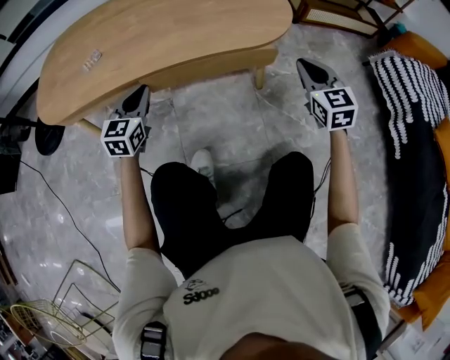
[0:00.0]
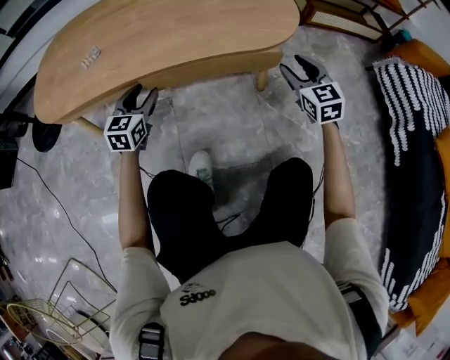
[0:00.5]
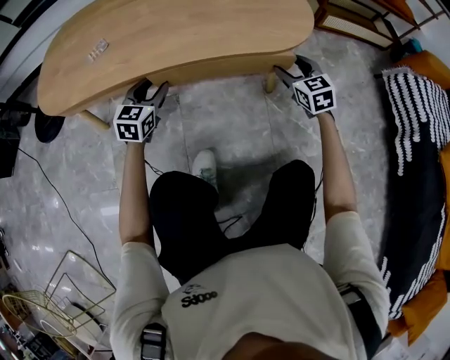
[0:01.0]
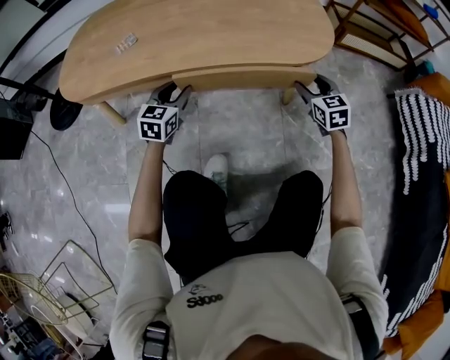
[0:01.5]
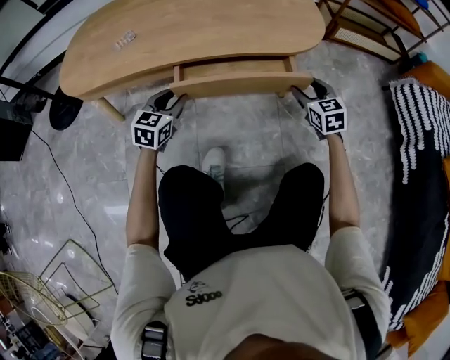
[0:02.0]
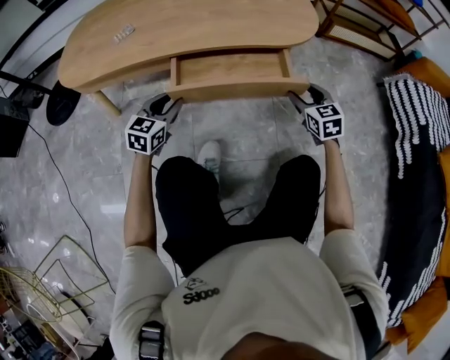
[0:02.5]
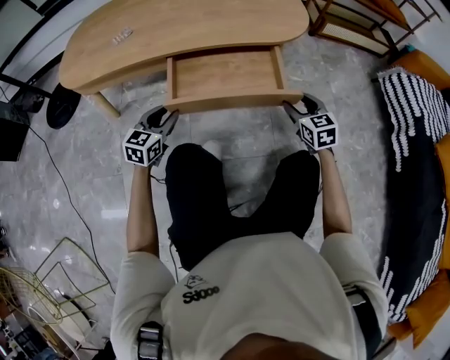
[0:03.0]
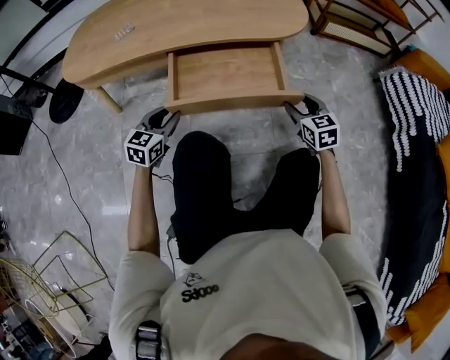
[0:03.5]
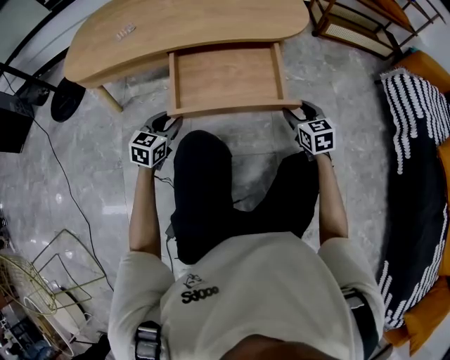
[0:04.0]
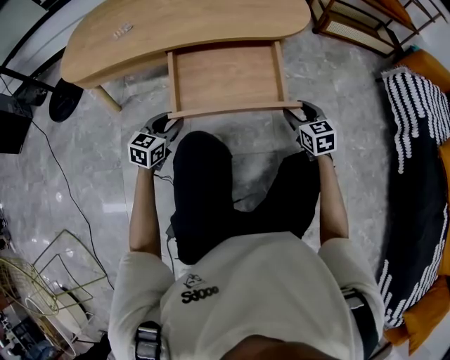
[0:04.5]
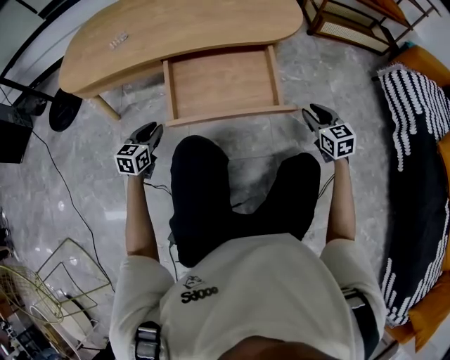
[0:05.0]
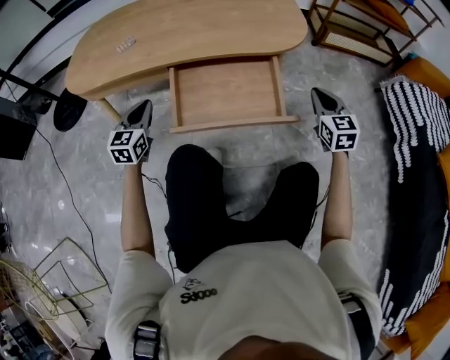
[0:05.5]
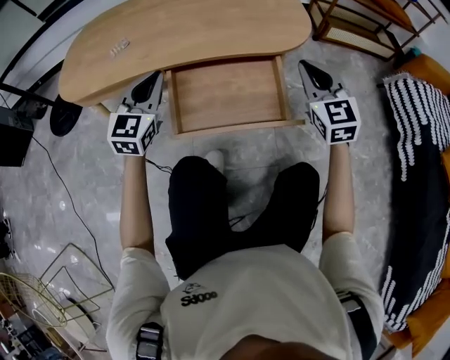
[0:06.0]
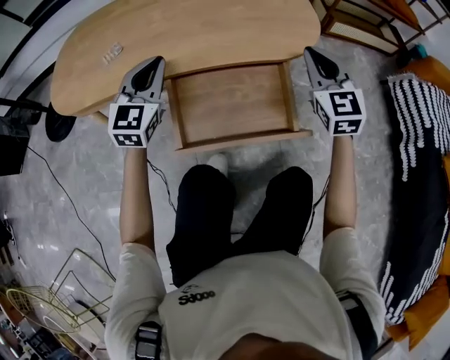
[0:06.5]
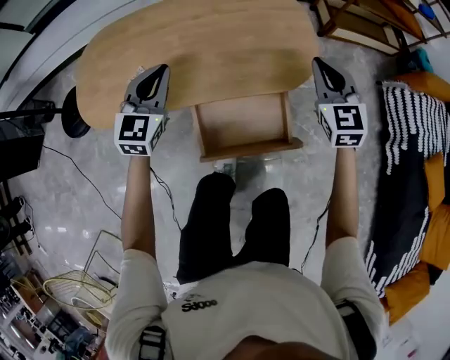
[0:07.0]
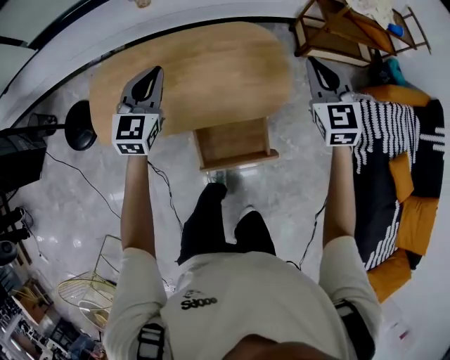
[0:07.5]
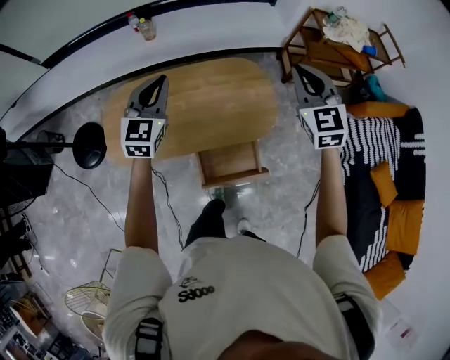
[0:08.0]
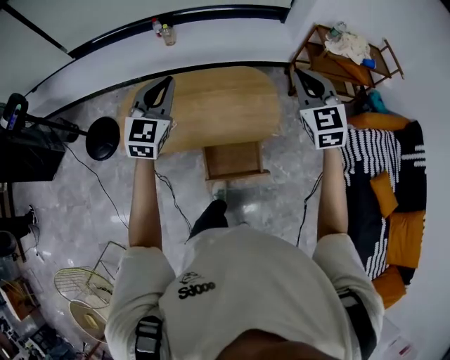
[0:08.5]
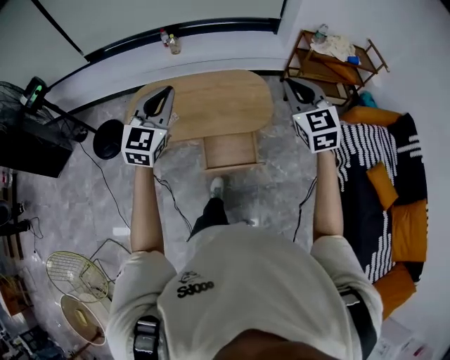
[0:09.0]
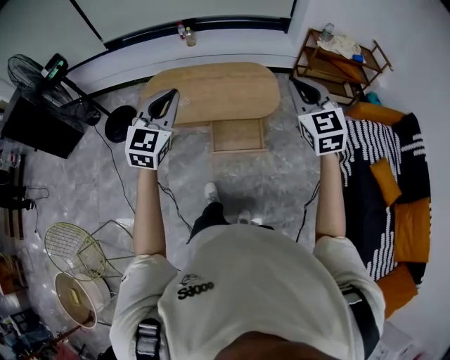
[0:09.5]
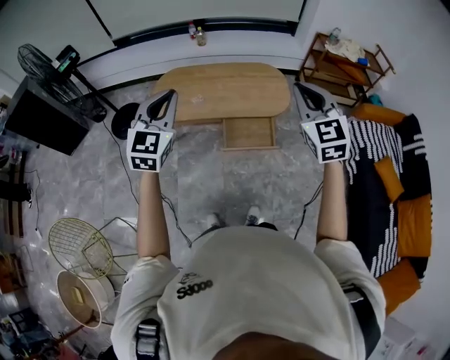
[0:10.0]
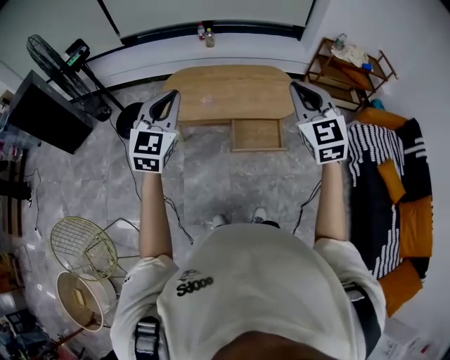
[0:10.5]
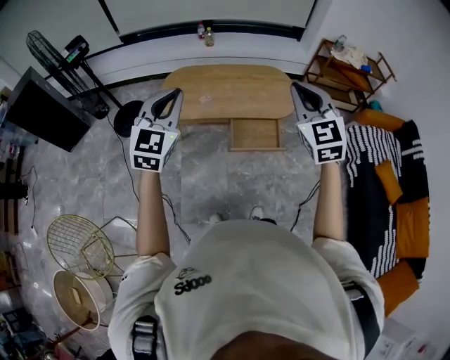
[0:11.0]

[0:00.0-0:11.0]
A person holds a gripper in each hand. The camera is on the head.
0:00.0 to 0:02.0: The left gripper goes some 5 cm downward, and opens up. The right gripper heads downward, covering about 10 cm, and opens.
0:02.0 to 0:03.5: Both grippers move backward, roughly 10 cm.
0:03.5 to 0:05.5: The right gripper goes some 10 cm upward, and closes up; the left gripper is displaced to the left, upward and forward by some 10 cm, and closes up.
0:05.5 to 0:07.5: Both grippers travel together upward and forward, some 50 cm.
0:07.5 to 0:09.0: The grippers both shift upward and backward by some 40 cm.
0:09.0 to 0:11.0: The two grippers go approximately 30 cm backward and to the left.

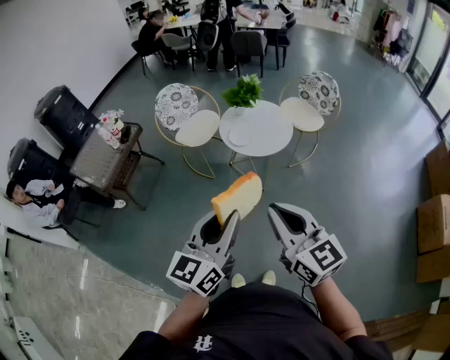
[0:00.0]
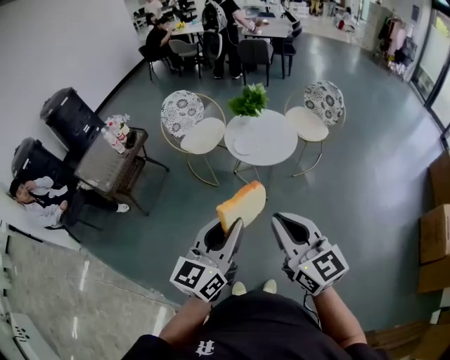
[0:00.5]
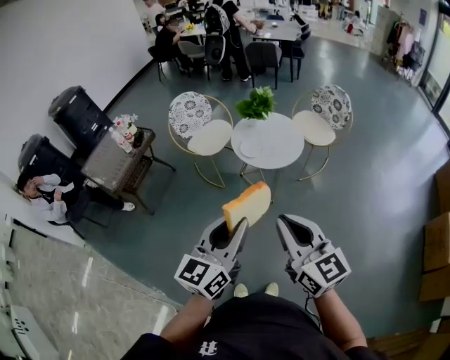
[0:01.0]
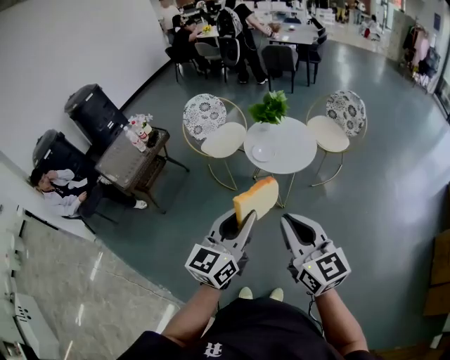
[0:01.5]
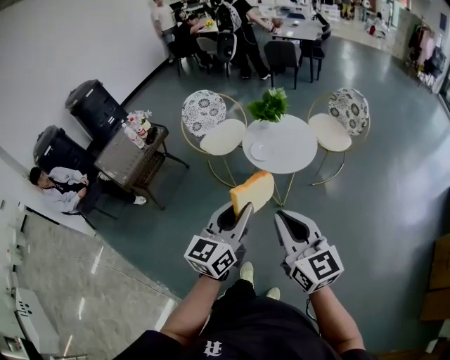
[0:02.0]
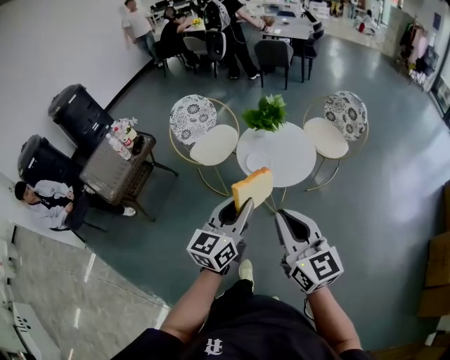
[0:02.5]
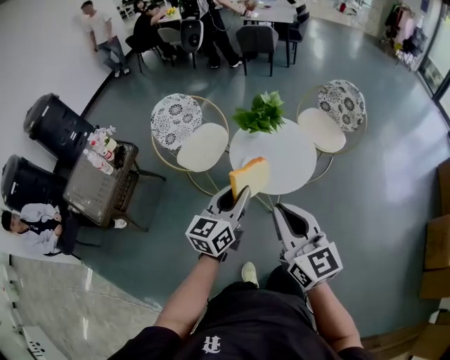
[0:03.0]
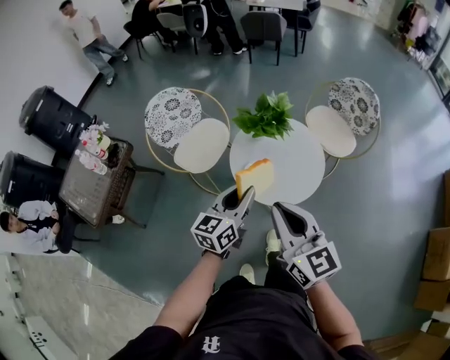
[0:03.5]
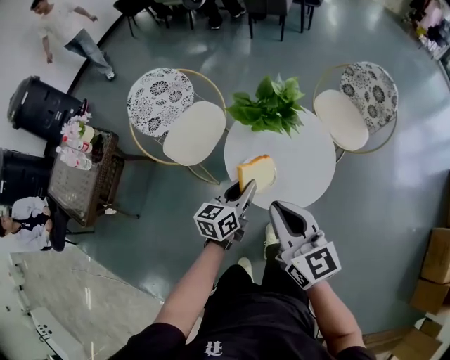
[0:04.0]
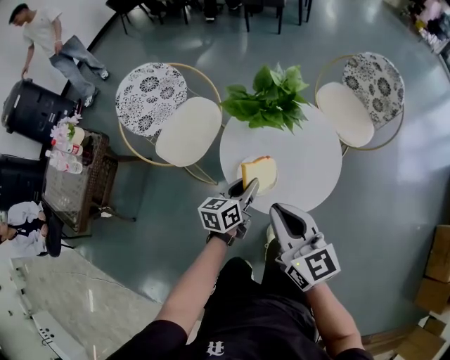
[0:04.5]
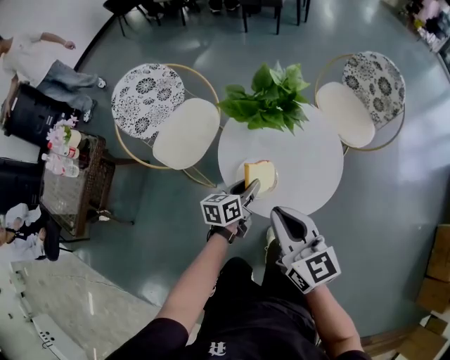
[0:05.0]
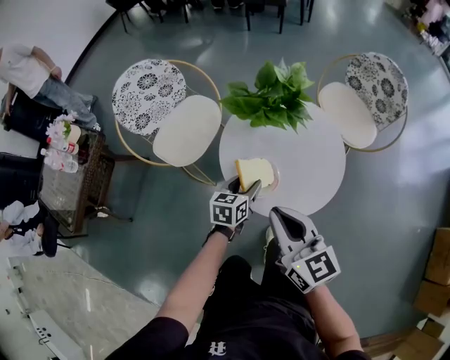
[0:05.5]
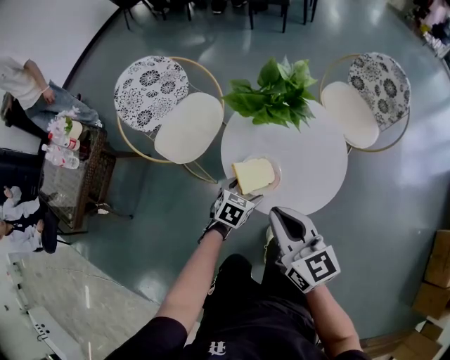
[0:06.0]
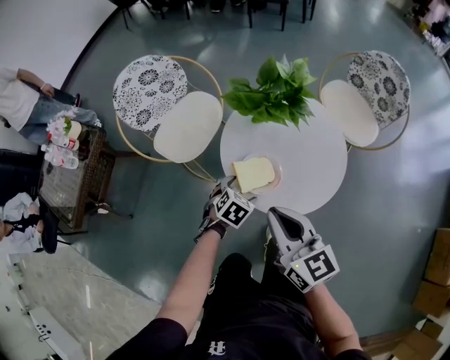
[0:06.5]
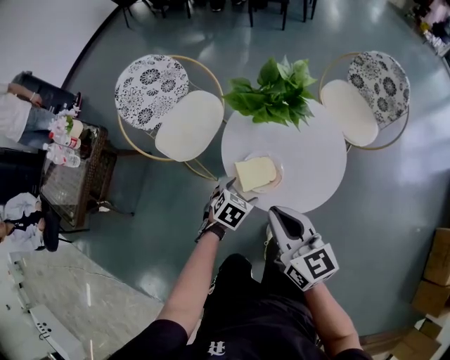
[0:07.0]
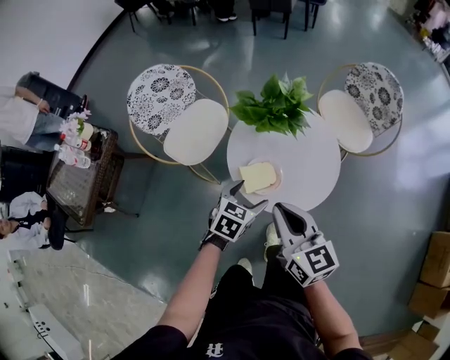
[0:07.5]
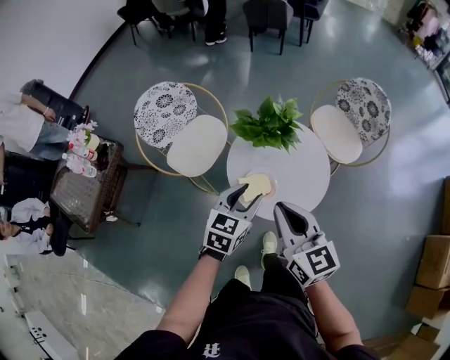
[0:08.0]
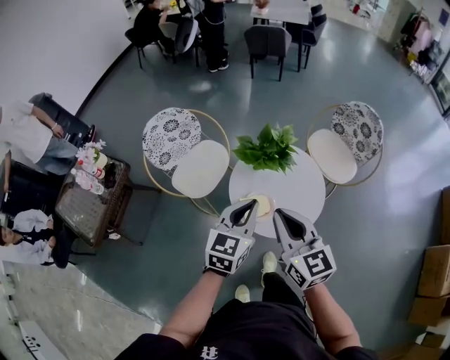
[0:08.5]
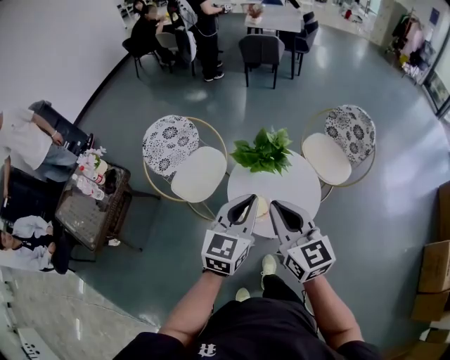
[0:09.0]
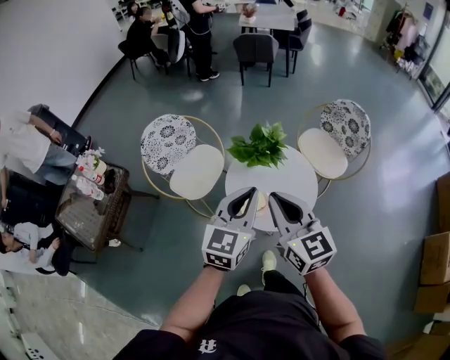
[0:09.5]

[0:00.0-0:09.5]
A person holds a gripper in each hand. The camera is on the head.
0:00.0 to 0:02.0: The right gripper heads forward, covering approximately 5 cm. The left gripper is displaced forward by about 10 cm.
0:02.0 to 0:04.0: The pair of grippers is taken forward, some 50 cm. The left gripper travels downward by some 30 cm, and changes its angle by about 30 degrees. The right gripper moves downward, roughly 20 cm.
0:04.0 to 0:05.5: The right gripper heads downward, covering approximately 10 cm, while the left gripper shifts some 15 cm downward.
0:05.5 to 0:07.5: The left gripper heads upward and backward, covering about 10 cm, swivels some 20 degrees, and opens its fingers, while the right gripper travels upward by some 5 cm.
0:07.5 to 0:09.5: The left gripper travels upward by about 30 cm, angles its fingers upward, by approximately 40 degrees, and closes its fingers; the right gripper heads upward, covering some 20 cm.

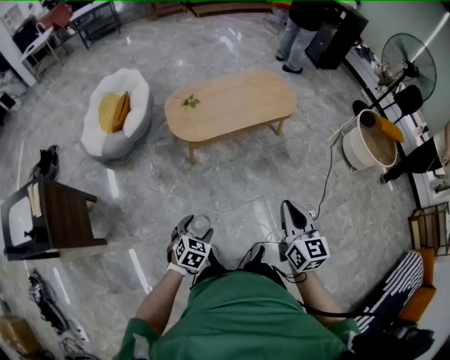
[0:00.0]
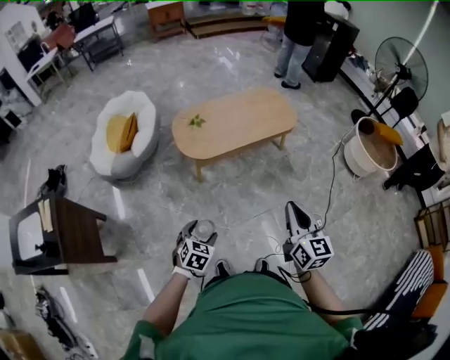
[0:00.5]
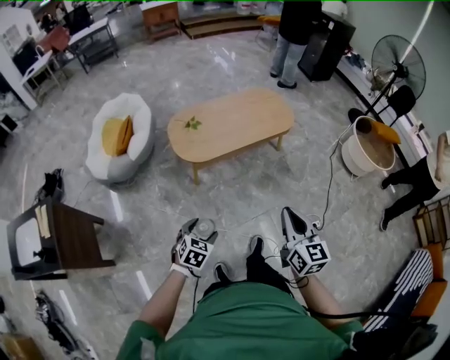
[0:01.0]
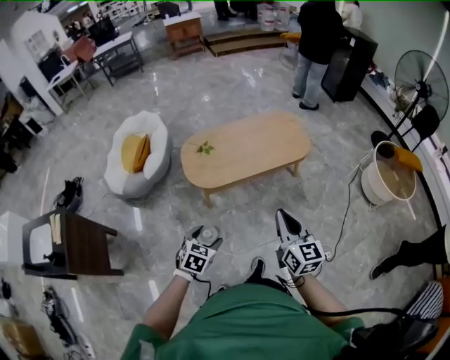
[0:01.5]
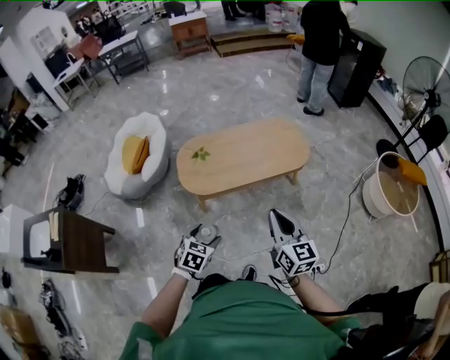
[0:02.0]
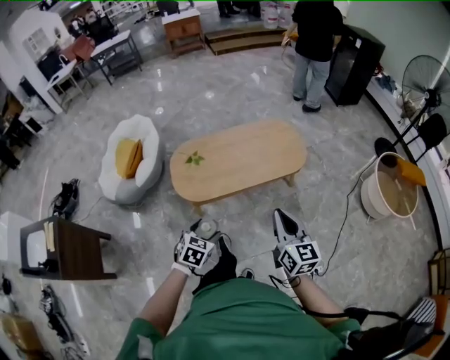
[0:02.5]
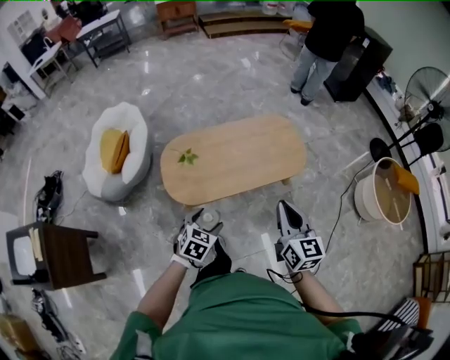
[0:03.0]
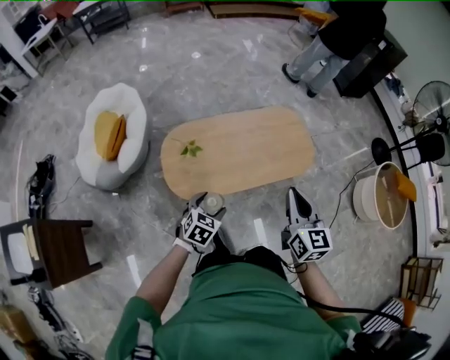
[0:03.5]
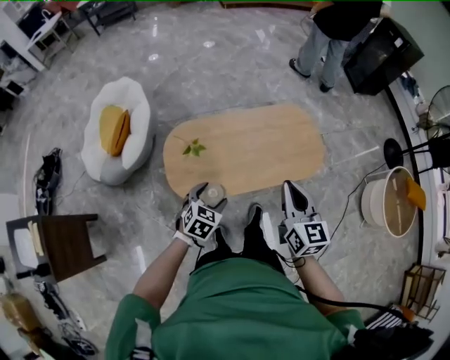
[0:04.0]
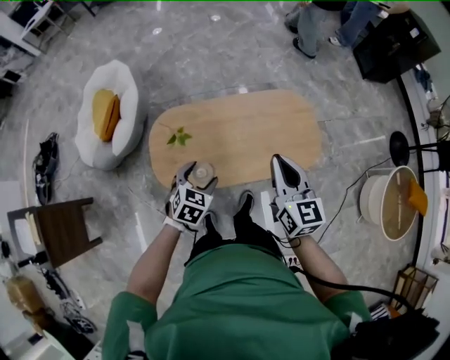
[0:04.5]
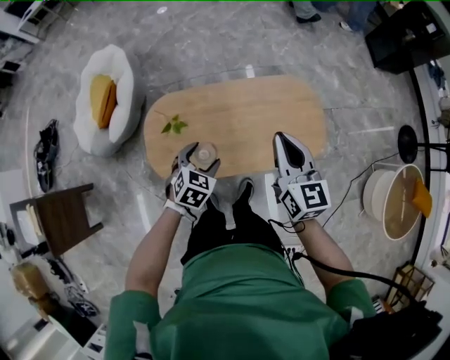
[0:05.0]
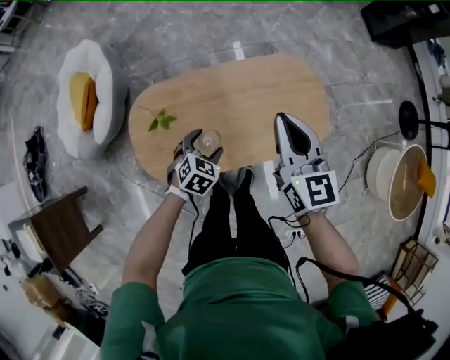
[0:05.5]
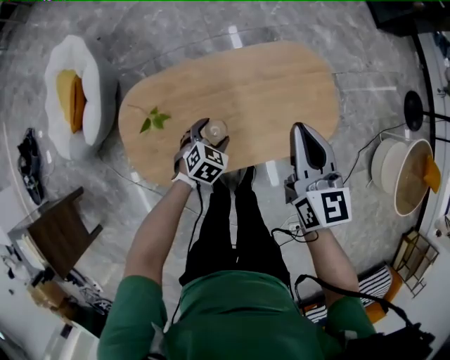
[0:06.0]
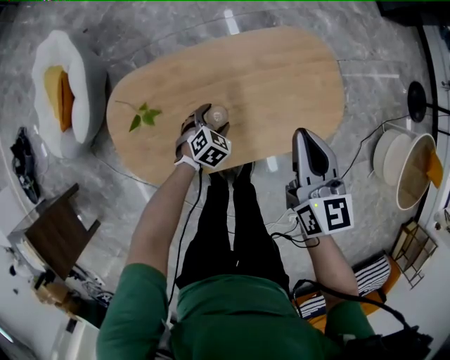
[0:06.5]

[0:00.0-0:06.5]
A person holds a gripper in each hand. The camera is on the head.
0:00.0 to 0:02.0: The right gripper heads forward, covering approximately 20 cm; the left gripper goes roughly 25 cm forward and to the right.
0:02.0 to 0:04.5: Both grippers are carried forward, some 50 cm.
0:04.5 to 0:06.5: The right gripper is displaced downward and forward by approximately 25 cm; the left gripper goes roughly 40 cm downward and forward.
